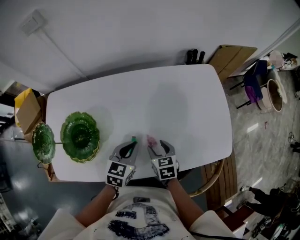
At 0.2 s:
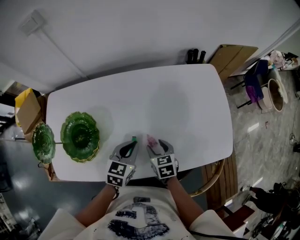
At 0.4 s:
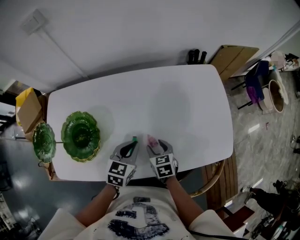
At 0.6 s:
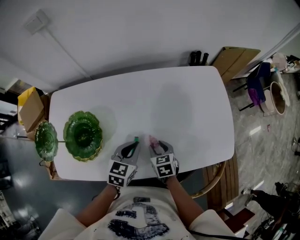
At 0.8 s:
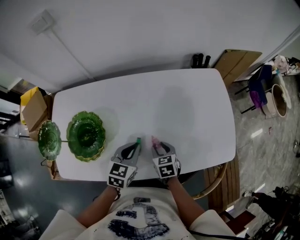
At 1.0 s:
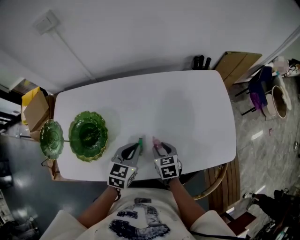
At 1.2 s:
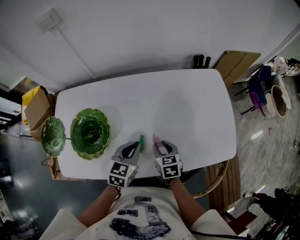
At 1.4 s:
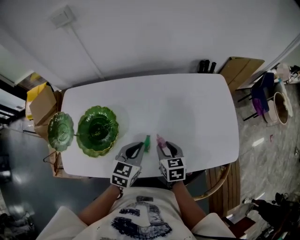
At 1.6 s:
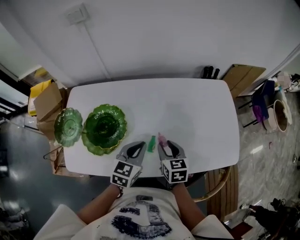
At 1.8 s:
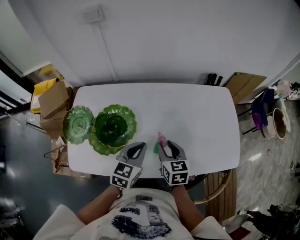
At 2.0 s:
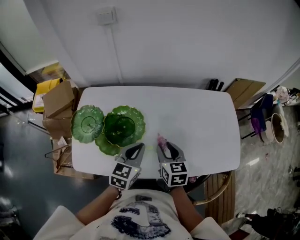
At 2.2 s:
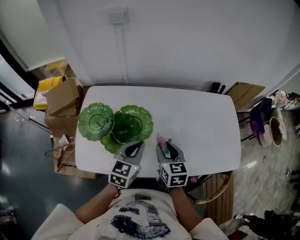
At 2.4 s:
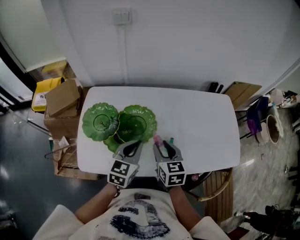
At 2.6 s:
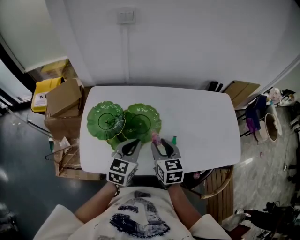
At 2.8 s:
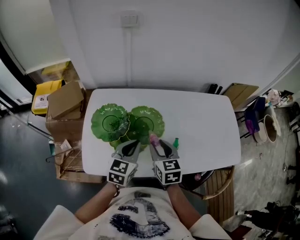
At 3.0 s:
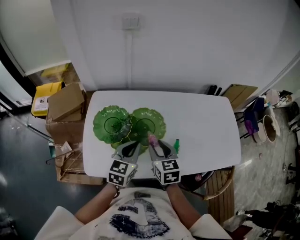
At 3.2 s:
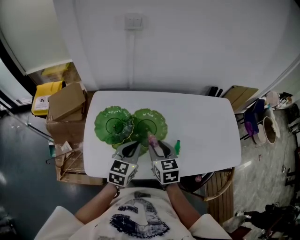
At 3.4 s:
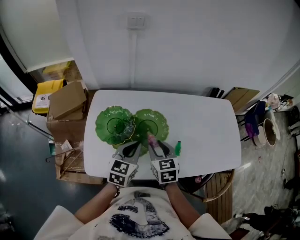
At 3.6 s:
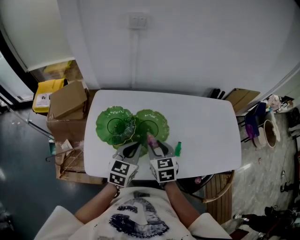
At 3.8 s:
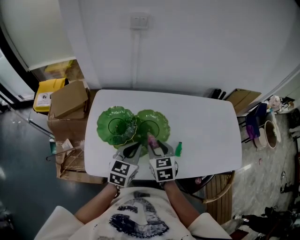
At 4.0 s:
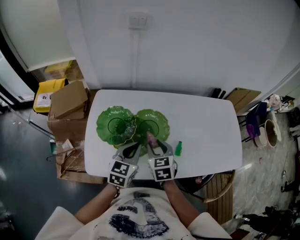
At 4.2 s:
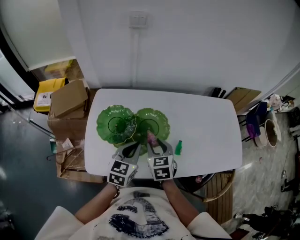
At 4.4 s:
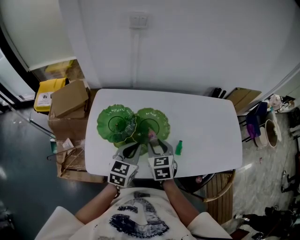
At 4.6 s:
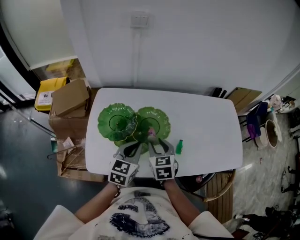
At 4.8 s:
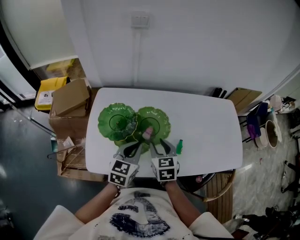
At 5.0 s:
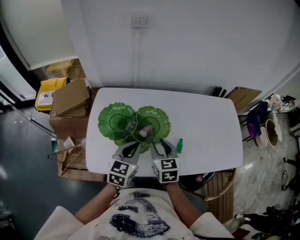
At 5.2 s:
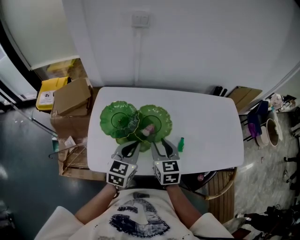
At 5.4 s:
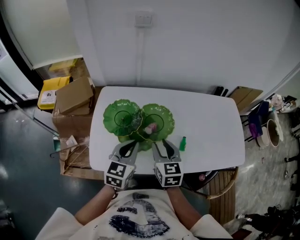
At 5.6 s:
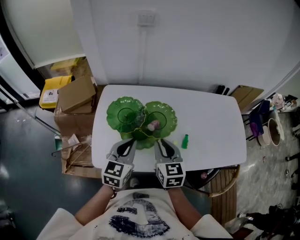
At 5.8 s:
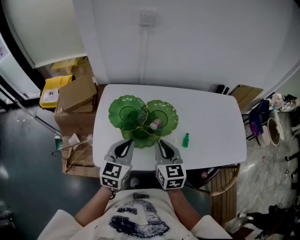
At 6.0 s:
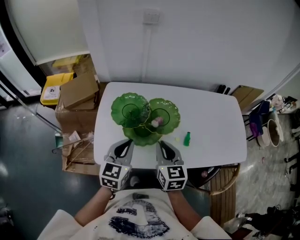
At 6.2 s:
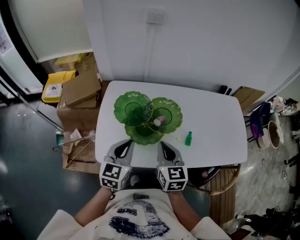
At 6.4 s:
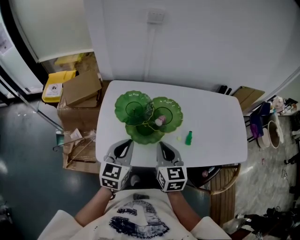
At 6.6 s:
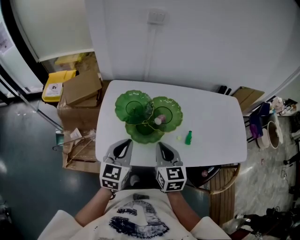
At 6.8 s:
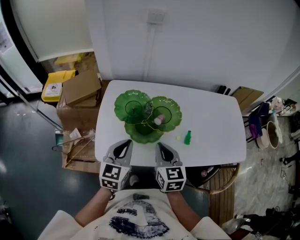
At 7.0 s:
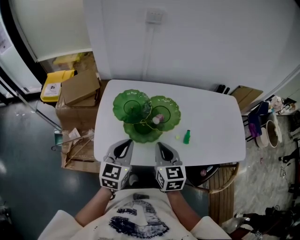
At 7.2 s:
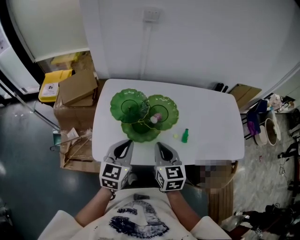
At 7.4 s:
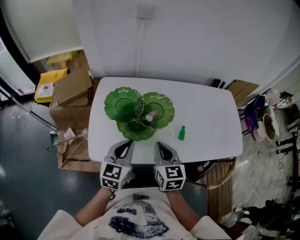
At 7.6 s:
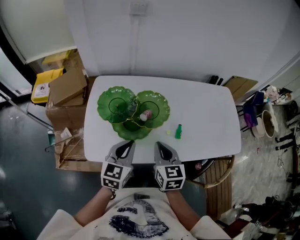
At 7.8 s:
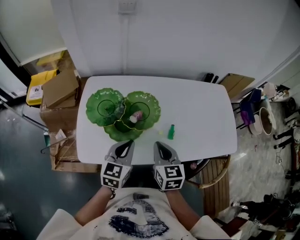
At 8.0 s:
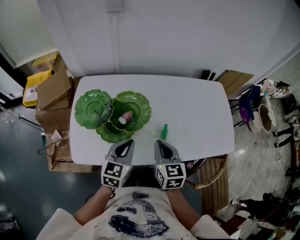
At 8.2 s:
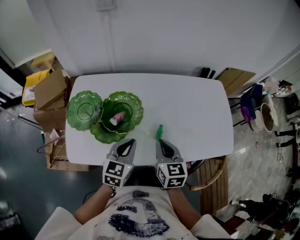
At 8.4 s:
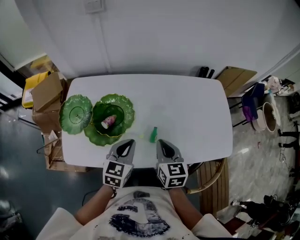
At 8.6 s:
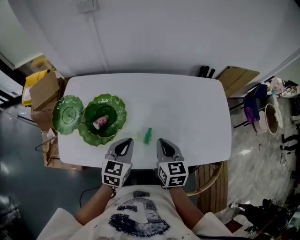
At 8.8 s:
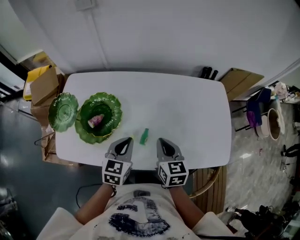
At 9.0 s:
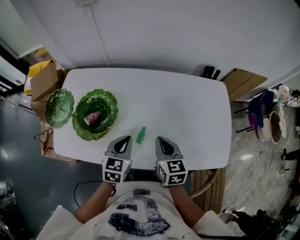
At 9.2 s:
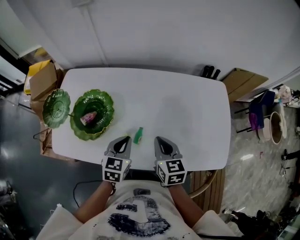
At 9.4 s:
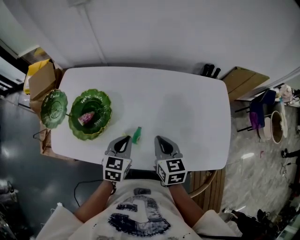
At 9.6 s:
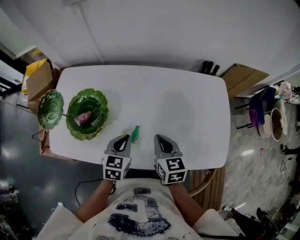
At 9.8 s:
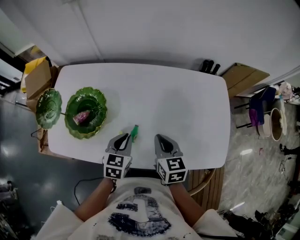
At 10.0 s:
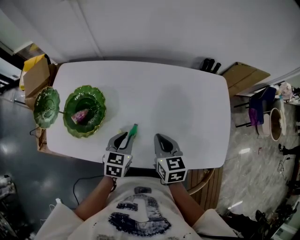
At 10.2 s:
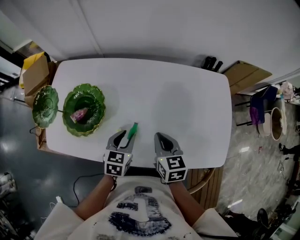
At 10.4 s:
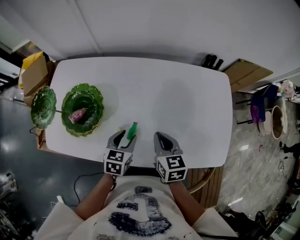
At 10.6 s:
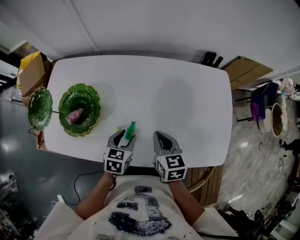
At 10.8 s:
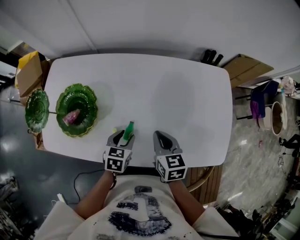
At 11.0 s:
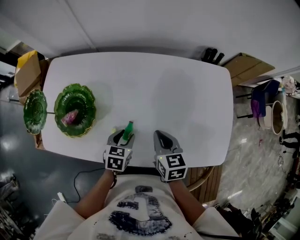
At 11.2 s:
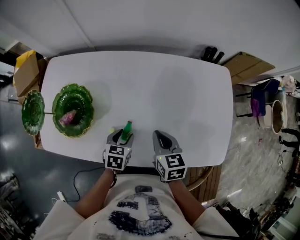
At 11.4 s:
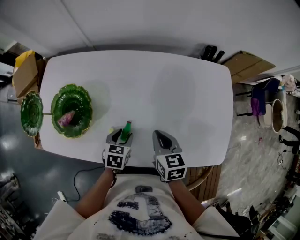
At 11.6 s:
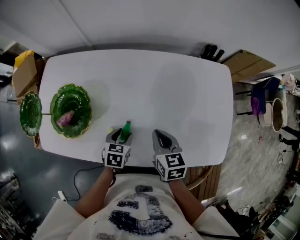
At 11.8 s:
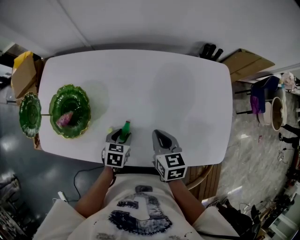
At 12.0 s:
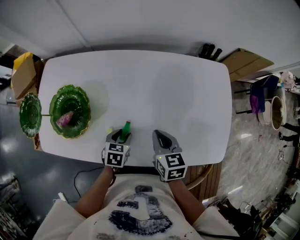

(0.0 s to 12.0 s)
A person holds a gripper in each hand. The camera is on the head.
0.0 s - 1.6 s: Both grippers travel together upward and to the left, some 10 cm.
1.6 s - 3.0 s: The left gripper travels to the left by some 20 cm. Meanwhile the right gripper moves to the left and upward, about 25 cm.
3.0 s - 4.4 s: The grippers make only small movements.
4.4 s - 6.0 s: The left gripper heads to the left and backward, covering roughly 10 cm; the right gripper goes roughly 10 cm backward and upward, and closes up.
6.0 s - 7.6 s: The left gripper is displaced to the right by some 5 cm.
7.6 s - 9.0 s: The two grippers go about 25 cm to the right and forward.
9.0 s - 10.4 s: The right gripper changes place by roughly 5 cm. Meanwhile the left gripper travels downward by about 10 cm, and opens up.
10.4 s - 12.0 s: The left gripper heads downward, covering approximately 10 cm.

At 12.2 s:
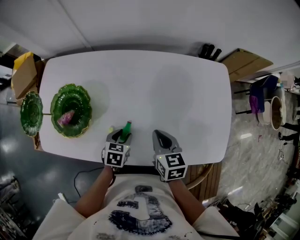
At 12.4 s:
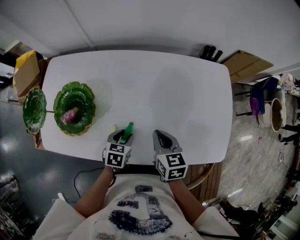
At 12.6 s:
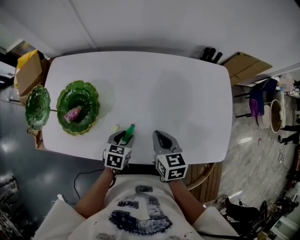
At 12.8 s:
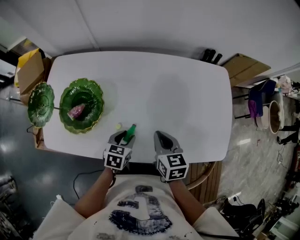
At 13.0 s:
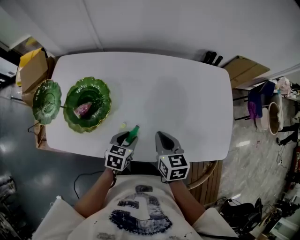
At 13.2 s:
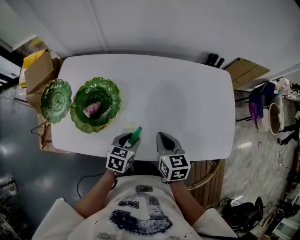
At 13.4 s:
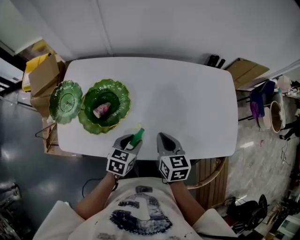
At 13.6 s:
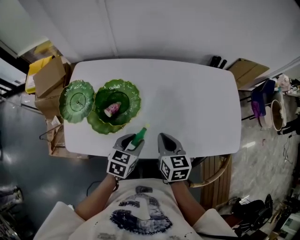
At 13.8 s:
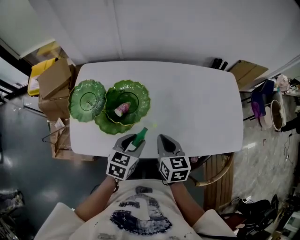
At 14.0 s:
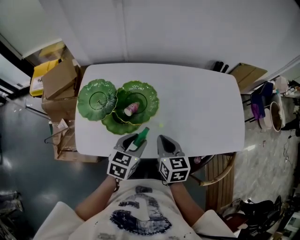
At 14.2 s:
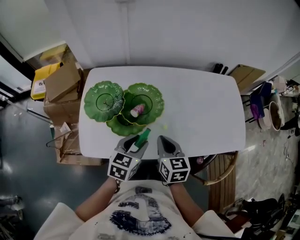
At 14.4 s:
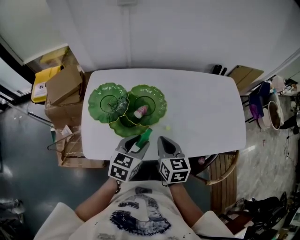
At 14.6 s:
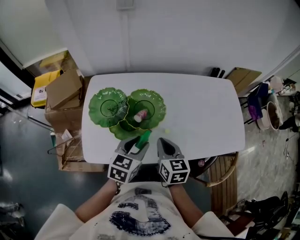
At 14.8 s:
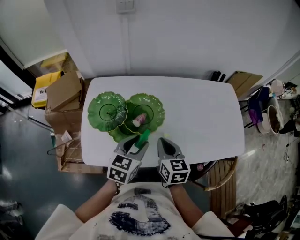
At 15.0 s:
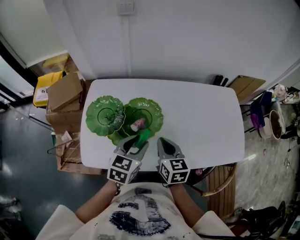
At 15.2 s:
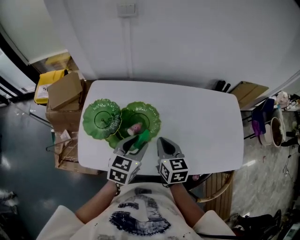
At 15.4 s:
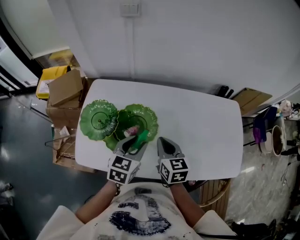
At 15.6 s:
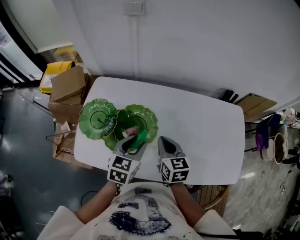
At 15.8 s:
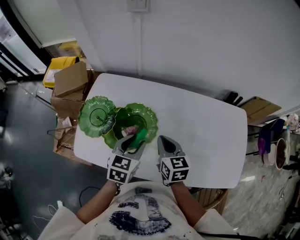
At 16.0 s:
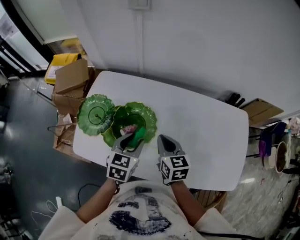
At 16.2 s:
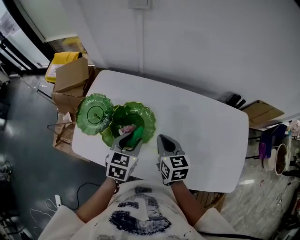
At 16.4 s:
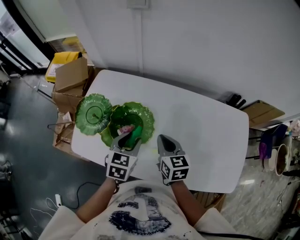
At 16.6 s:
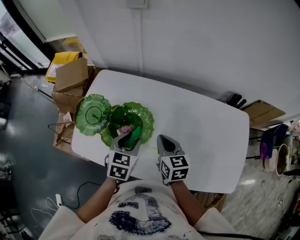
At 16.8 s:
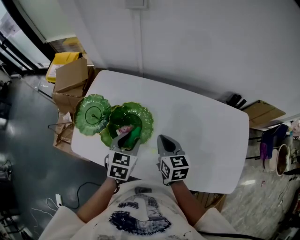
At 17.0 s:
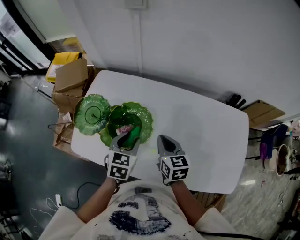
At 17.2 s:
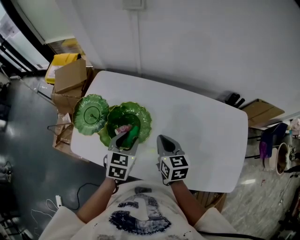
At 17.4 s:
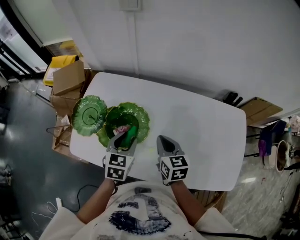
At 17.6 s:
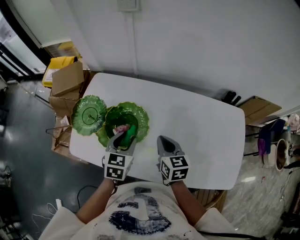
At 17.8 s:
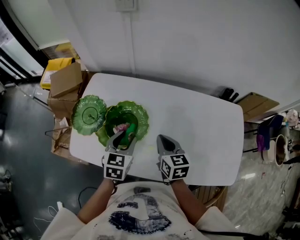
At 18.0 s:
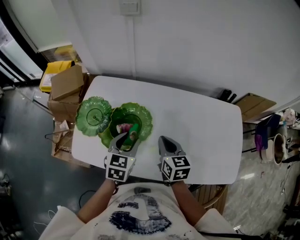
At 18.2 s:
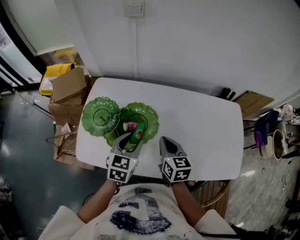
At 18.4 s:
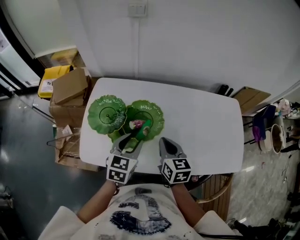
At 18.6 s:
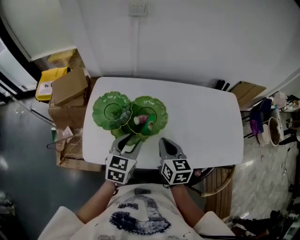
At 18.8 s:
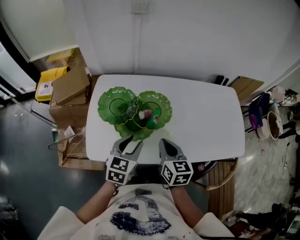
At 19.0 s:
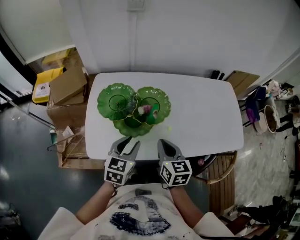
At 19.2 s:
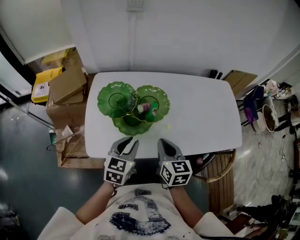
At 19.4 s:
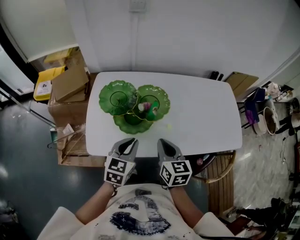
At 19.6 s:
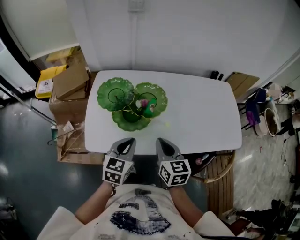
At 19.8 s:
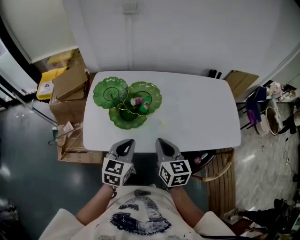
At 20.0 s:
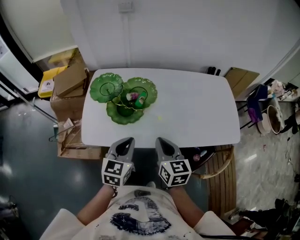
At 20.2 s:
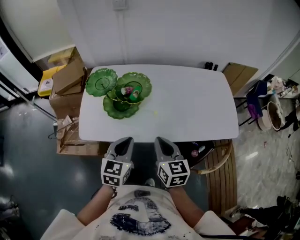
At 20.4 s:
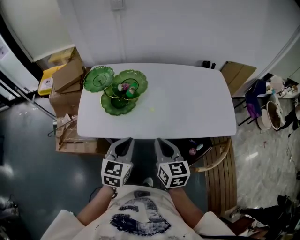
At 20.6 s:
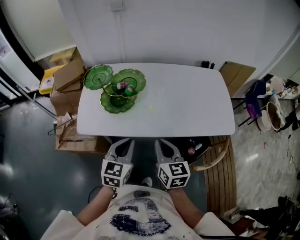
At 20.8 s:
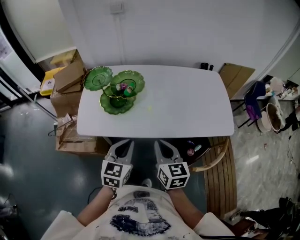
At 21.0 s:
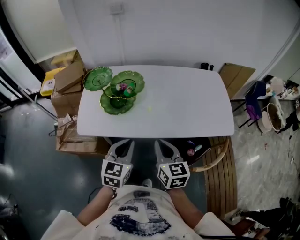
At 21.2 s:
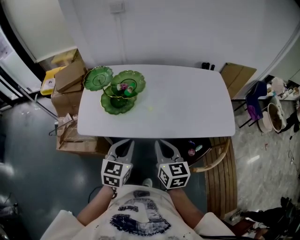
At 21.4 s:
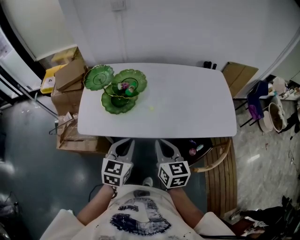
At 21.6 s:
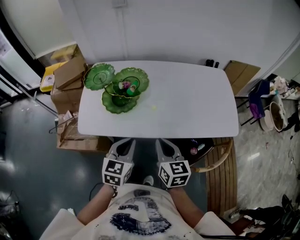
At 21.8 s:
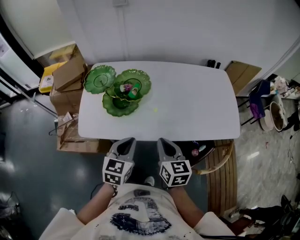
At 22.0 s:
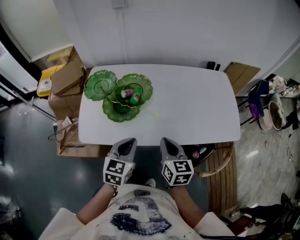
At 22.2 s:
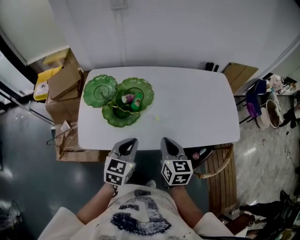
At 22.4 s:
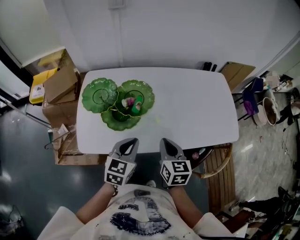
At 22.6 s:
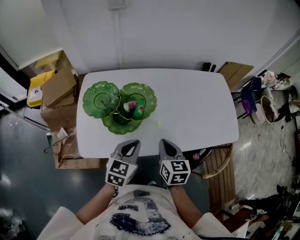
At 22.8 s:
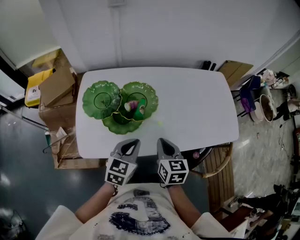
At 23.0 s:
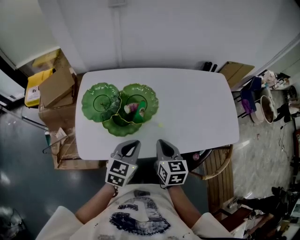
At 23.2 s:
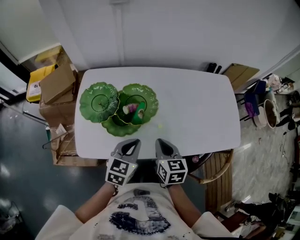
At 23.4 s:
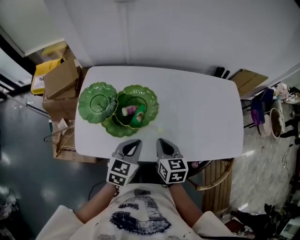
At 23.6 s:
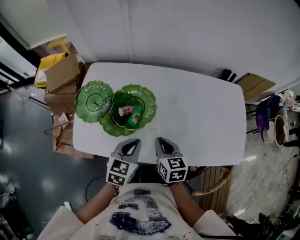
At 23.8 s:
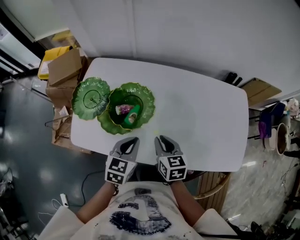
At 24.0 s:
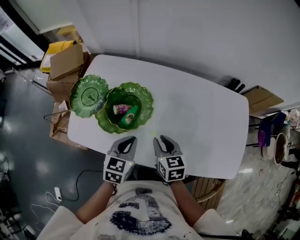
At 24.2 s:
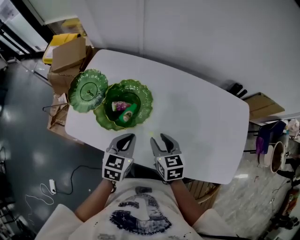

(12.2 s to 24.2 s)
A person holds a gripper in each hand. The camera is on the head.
12.2 s - 13.8 s: The left gripper shifts some 20 cm upward, to the left and backward, and turns by roughly 20 degrees; the right gripper moves to the left and backward, approximately 20 cm.
13.8 s - 15.2 s: The left gripper moves upward, forward and to the left, some 10 cm; the right gripper heads to the left and forward, covering approximately 10 cm.
15.2 s - 16.6 s: The left gripper shifts by about 5 cm, and rotates about 20 degrees. Meanwhile the right gripper goes roughly 5 cm forward.
16.6 s - 18.2 s: The left gripper changes place by approximately 5 cm; the right gripper moves roughly 5 cm.
18.2 s - 19.8 s: Both grippers travel together backward, roughly 15 cm. The left gripper closes up.
19.8 s - 21.2 s: Both grippers travel together backward and to the right, roughly 15 cm.
21.2 s - 22.6 s: The two grippers go approximately 15 cm forward and to the left.
22.6 s - 24.2 s: The right gripper shifts by approximately 15 cm, changes its angle by about 30 degrees, and opens up. The left gripper ends up some 10 cm from where it was, and swivels about 30 degrees.
